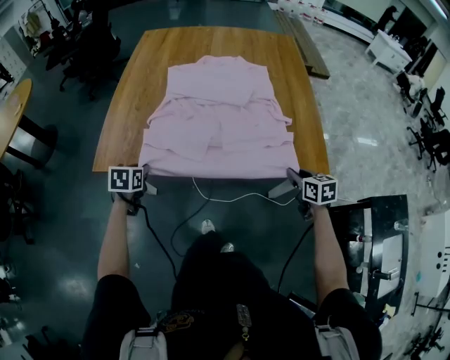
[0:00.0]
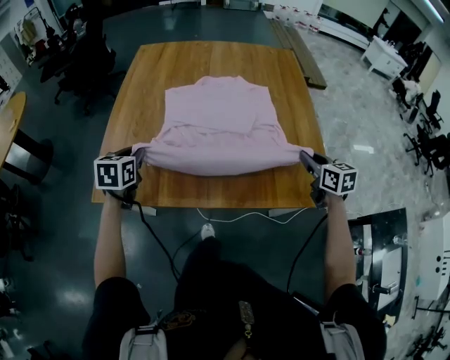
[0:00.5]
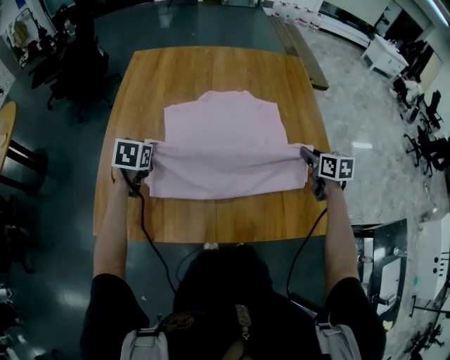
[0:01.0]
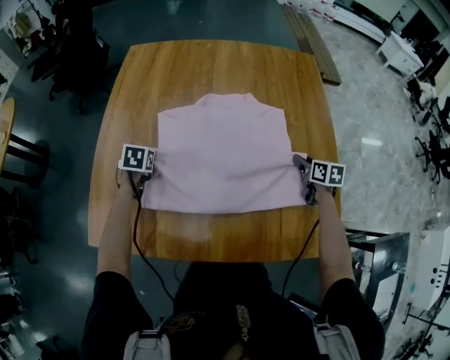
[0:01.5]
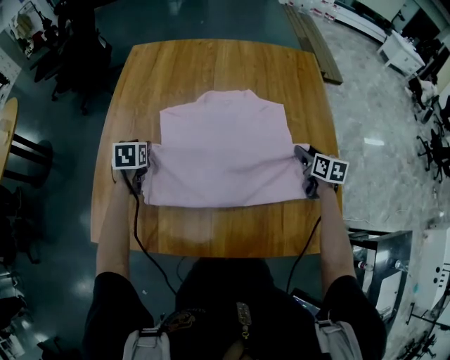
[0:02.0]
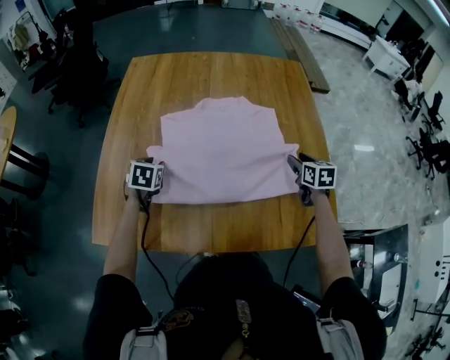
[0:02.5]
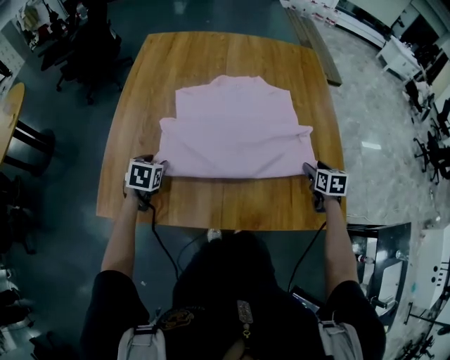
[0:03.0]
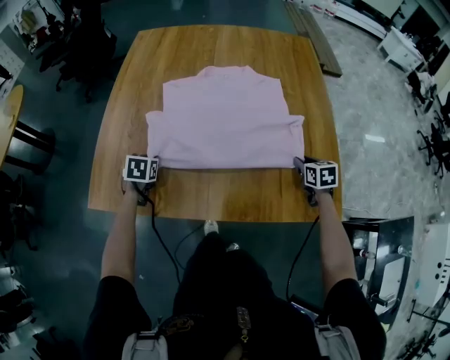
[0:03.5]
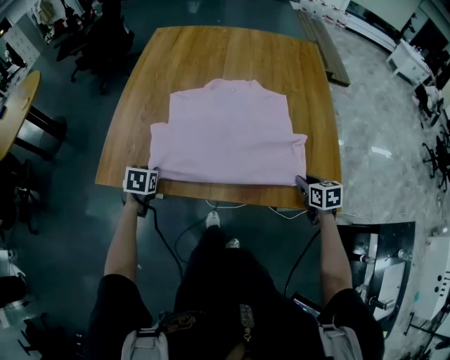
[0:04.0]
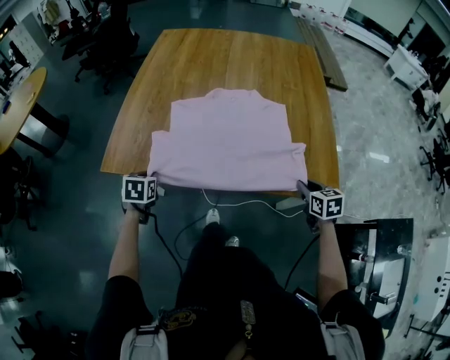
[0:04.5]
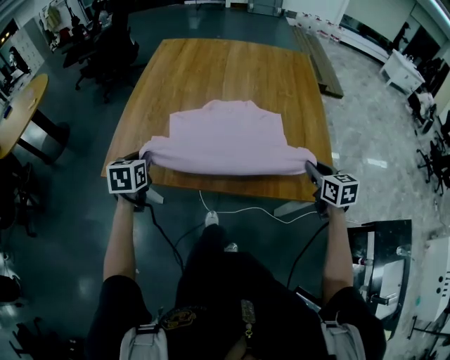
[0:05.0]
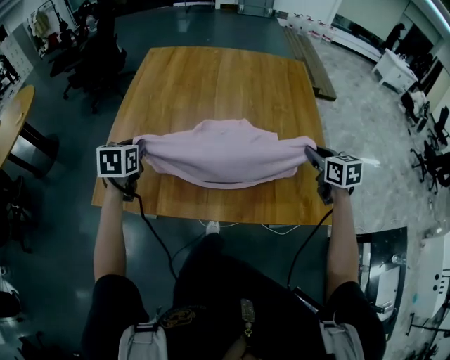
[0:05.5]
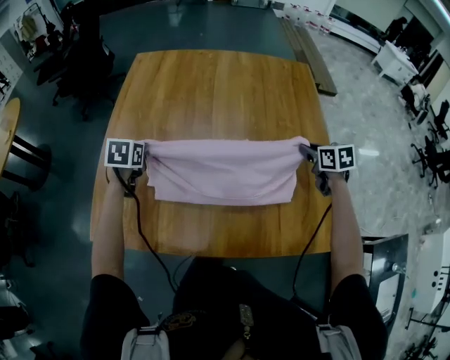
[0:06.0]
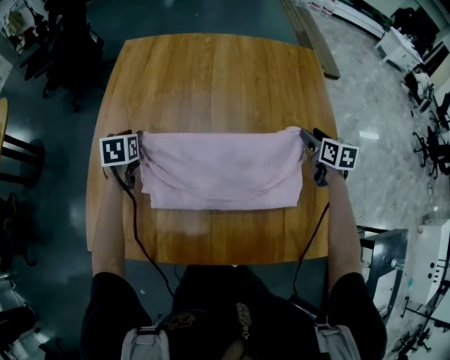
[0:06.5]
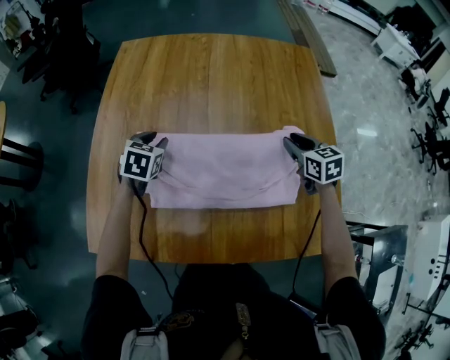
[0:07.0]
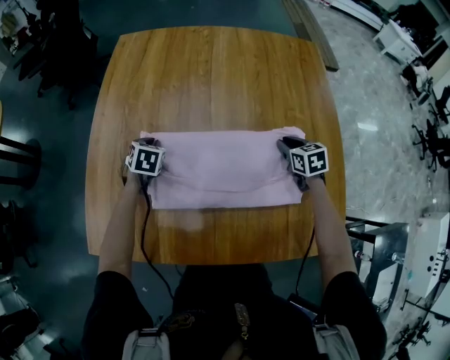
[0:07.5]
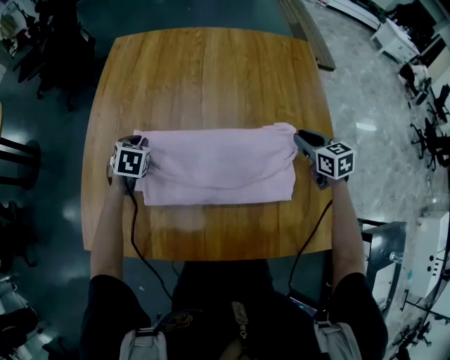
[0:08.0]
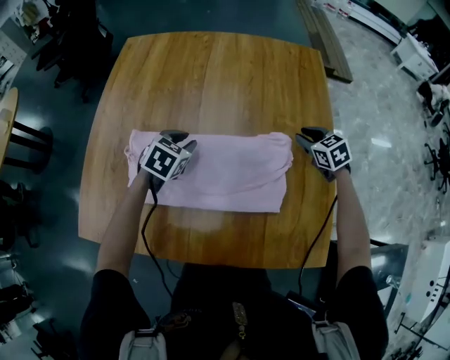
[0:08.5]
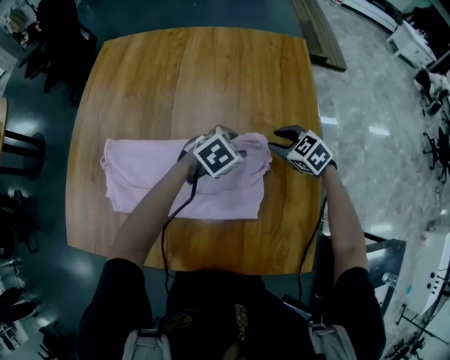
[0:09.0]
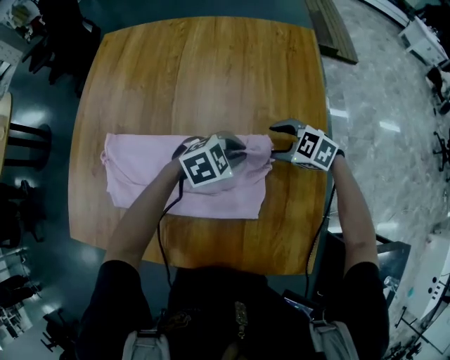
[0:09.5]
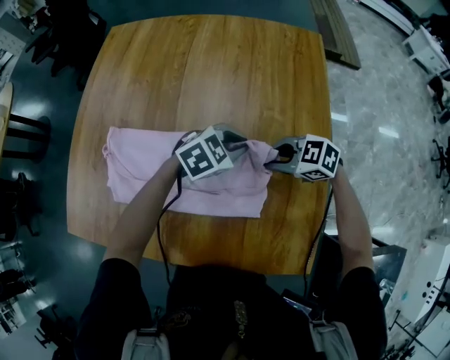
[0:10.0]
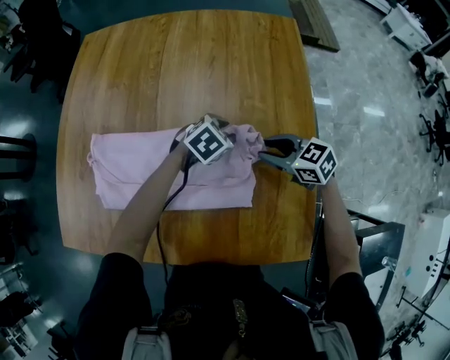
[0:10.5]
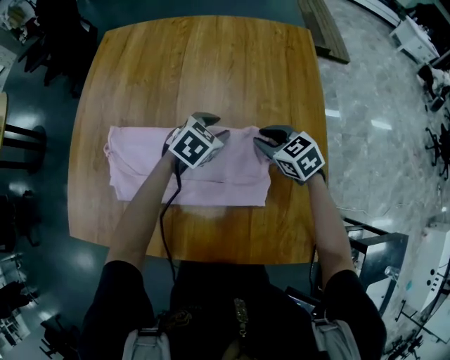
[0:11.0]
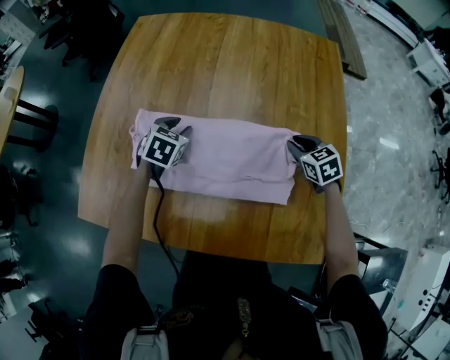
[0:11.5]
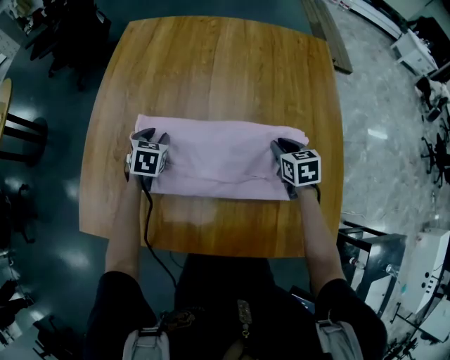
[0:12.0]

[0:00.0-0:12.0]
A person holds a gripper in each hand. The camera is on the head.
0:00.0 to 0:02.0: The two grippers go approximately 35 cm forward. The right gripper opens, while the left gripper opens its fingers.
0:02.0 to 0:04.0: Both grippers move backward, approximately 30 cm. The right gripper closes up, while the left gripper closes up.
0:04.0 to 0:06.0: Both grippers move forward and upward, about 25 cm.
0:06.0 to 0:08.0: The left gripper travels downward and forward by some 10 cm; the right gripper reaches about 10 cm downward, then returns, and opens, then closes again.
0:08.0 to 0:10.0: The right gripper ends up roughly 5 cm from where it was, swivels about 60 degrees, and opens, then closes again. The left gripper moves roughly 40 cm, swivels approximately 50 degrees, and opens, then closes again.
0:10.0 to 0:12.0: The left gripper swings up and down, roughly 5 cm each way, with 2 reversals, swivels some 50 degrees, and opens. Meanwhile the right gripper changes place by some 5 cm, and swivels about 60 degrees.

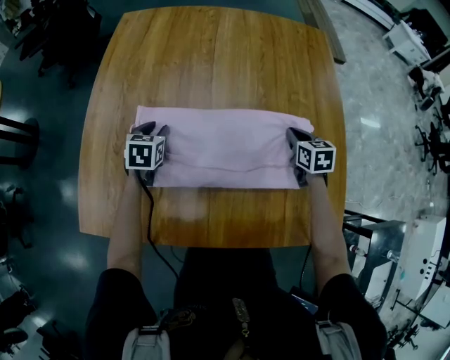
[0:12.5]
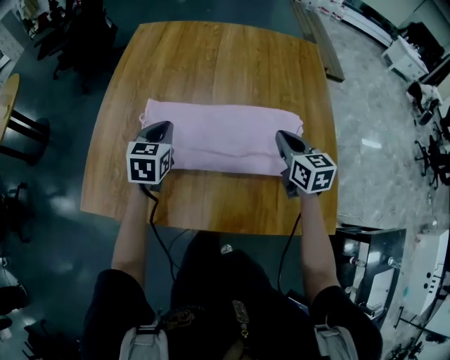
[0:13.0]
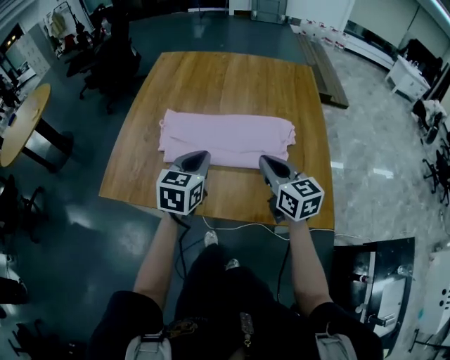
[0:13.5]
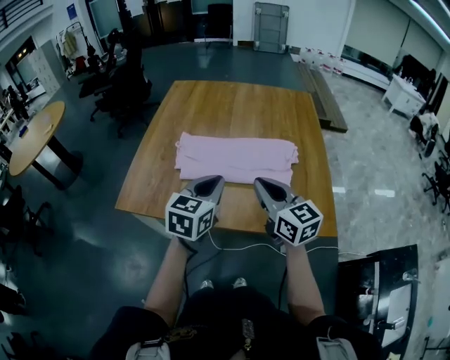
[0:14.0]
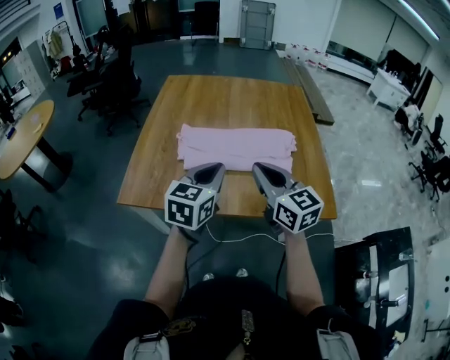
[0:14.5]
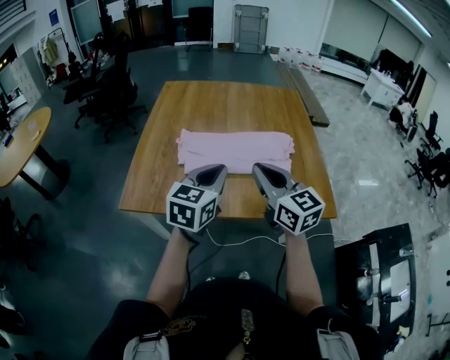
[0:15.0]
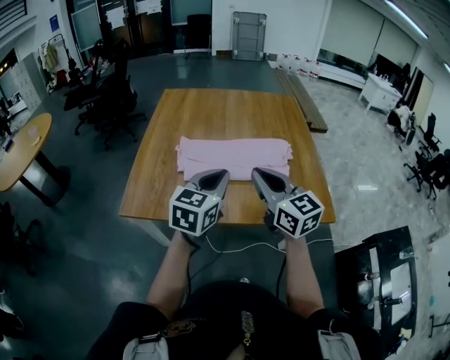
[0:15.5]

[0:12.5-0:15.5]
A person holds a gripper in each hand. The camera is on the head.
0:12.5 to 0:14.0: The right gripper heads backward, upward and to the left, covering approximately 40 cm, and angles its fingers upward, by about 40 degrees. The left gripper moves backward and upward, about 40 cm, changes its angle by roughly 30 degrees, and closes its fingers.
0:14.0 to 0:15.5: The left gripper moves approximately 5 cm; the right gripper shifts about 5 cm to the left.

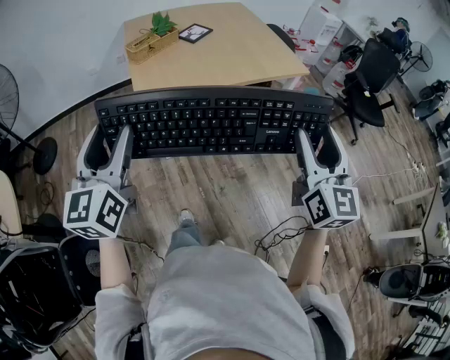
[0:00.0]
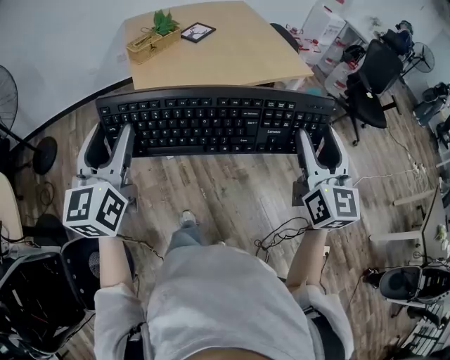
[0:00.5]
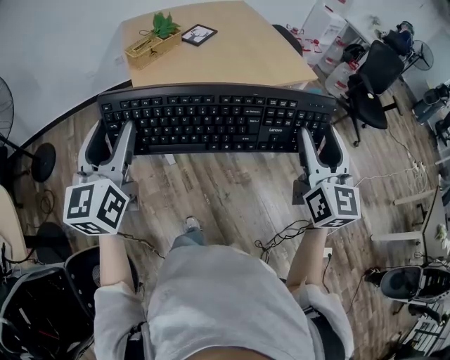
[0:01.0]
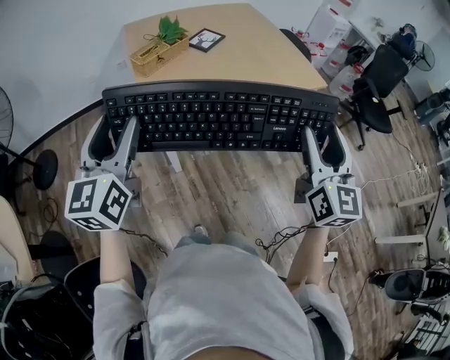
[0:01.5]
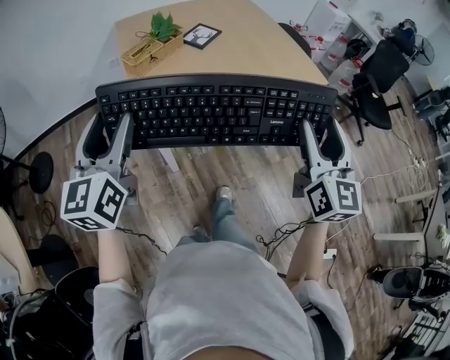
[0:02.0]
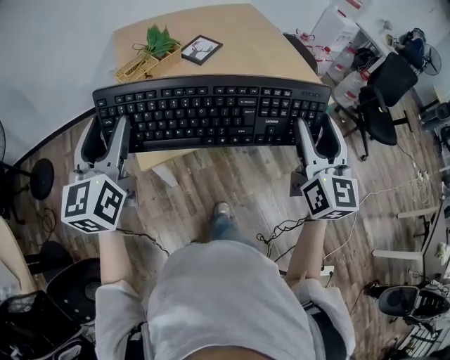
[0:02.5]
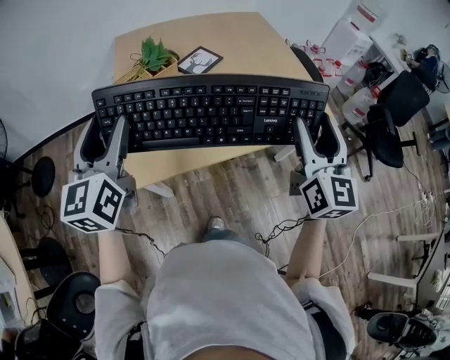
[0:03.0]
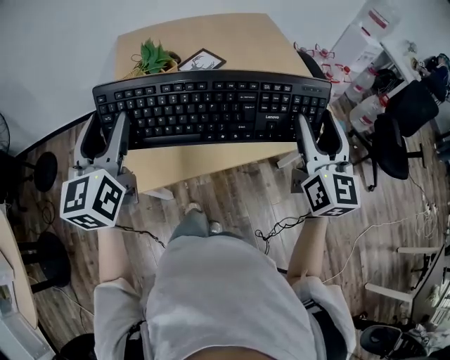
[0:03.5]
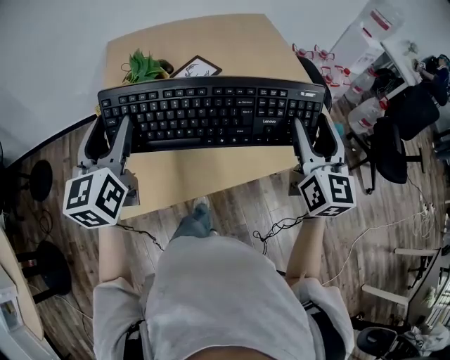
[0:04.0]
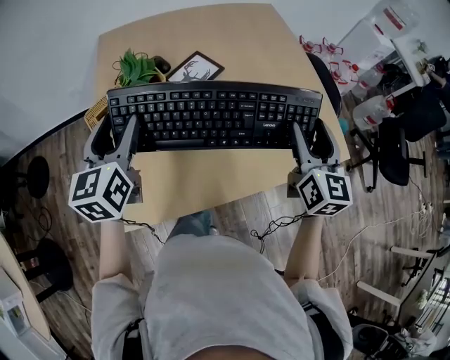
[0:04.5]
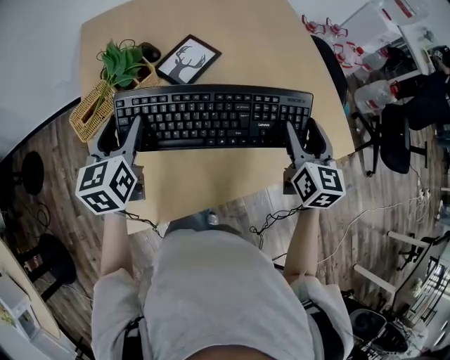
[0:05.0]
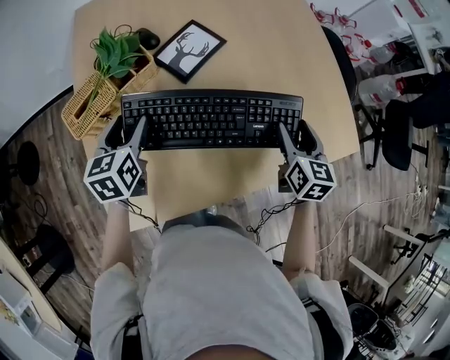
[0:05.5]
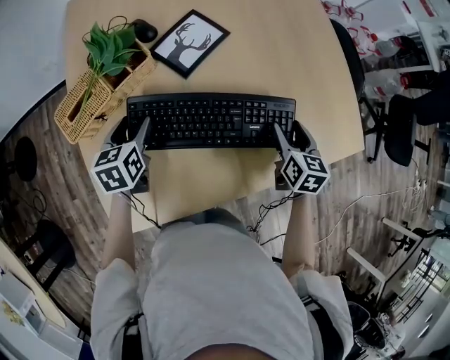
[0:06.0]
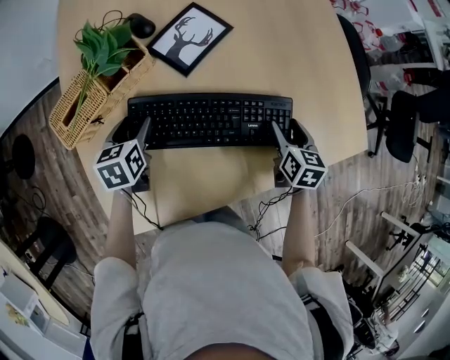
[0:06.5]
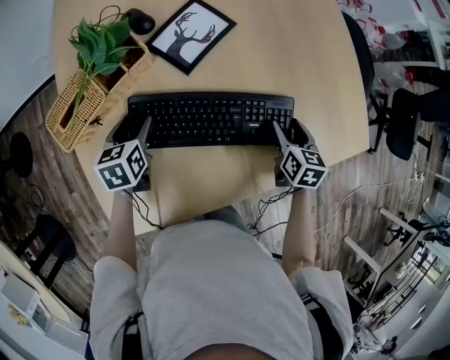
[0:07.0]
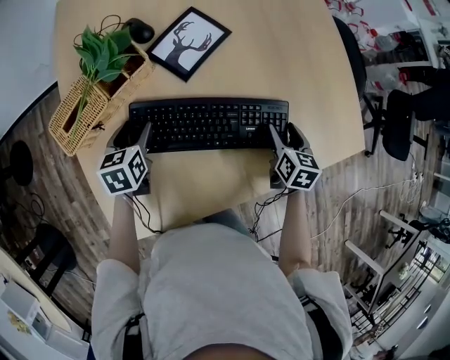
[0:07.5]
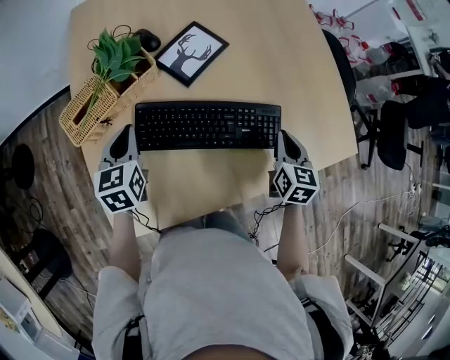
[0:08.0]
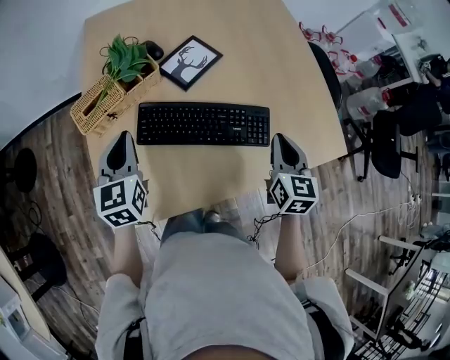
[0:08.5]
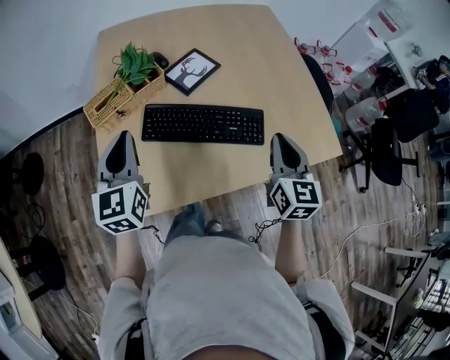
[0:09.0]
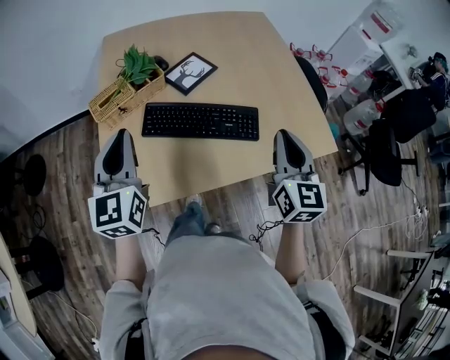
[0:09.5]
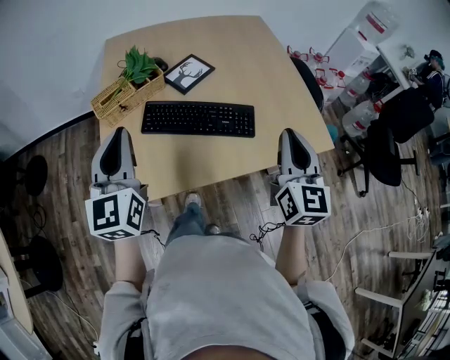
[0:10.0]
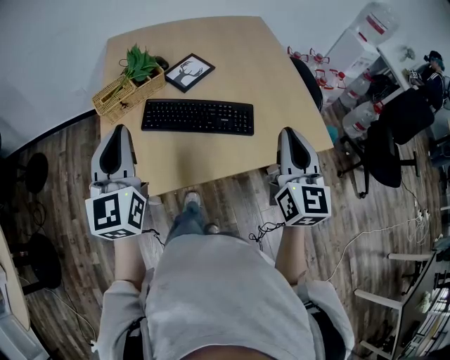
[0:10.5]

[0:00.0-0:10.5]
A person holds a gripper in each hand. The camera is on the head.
0:00.0 to 0:02.0: Both grippers move forward and to the left, roughly 20 cm.
0:02.0 to 0:04.0: The two grippers go approximately 35 cm forward.
0:04.0 to 0:06.5: Both grippers travel together downward and forward, approximately 40 cm. The right gripper tilts its fingers approximately 40 degrees downward; the left gripper tilts its fingers roughly 40 degrees downward.
0:06.5 to 0:08.5: Both grippers travel together upward and backward, about 20 cm. The right gripper swivels approximately 20 degrees, and closes up; the left gripper rotates approximately 30 degrees, and closes its fingers.
0:08.5 to 0:10.5: Both grippers move upward and backward, approximately 25 cm. The left gripper swivels some 20 degrees. Meanwhile the right gripper swivels some 20 degrees.

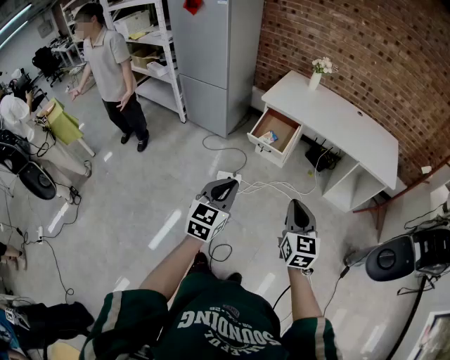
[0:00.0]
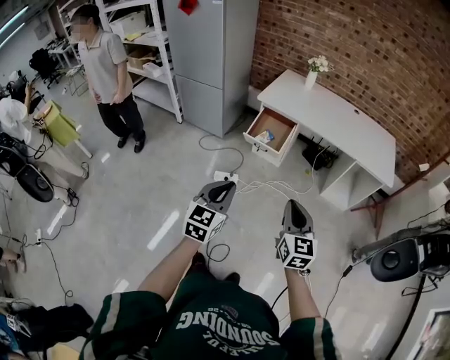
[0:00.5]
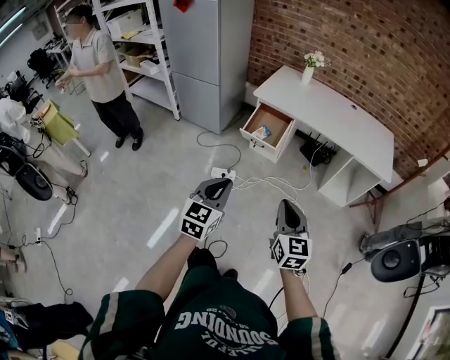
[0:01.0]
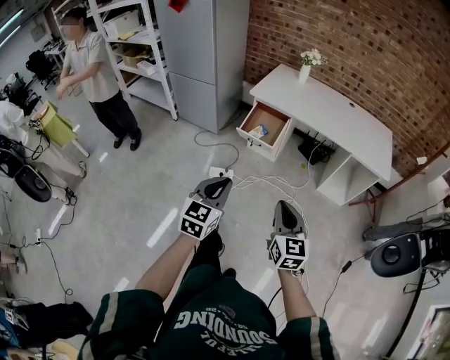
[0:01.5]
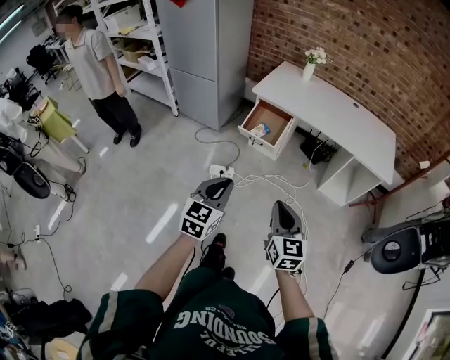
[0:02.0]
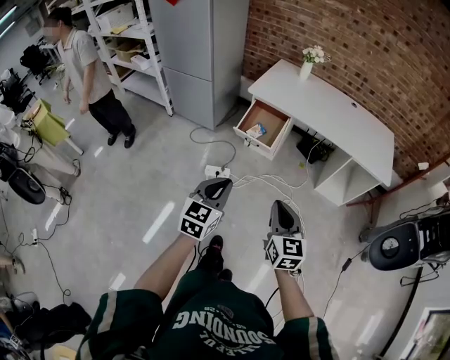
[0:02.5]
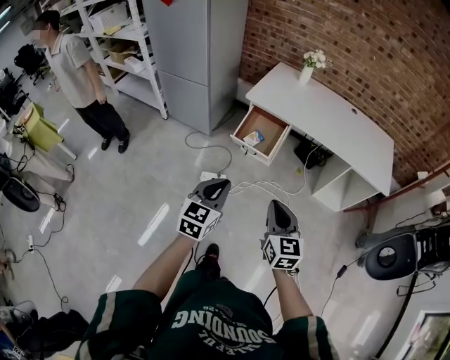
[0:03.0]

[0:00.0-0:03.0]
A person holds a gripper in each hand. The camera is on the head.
0:00.0 to 0:01.5: The grippers stay close to where they were, moving slightly.
0:01.5 to 0:03.0: Both grippers travel together forward, approximately 10 cm.
